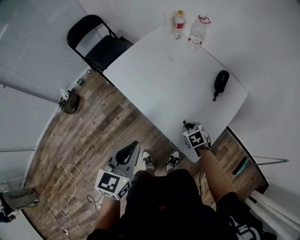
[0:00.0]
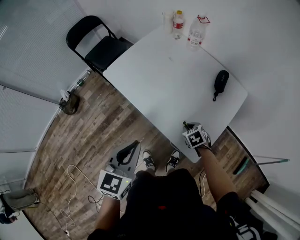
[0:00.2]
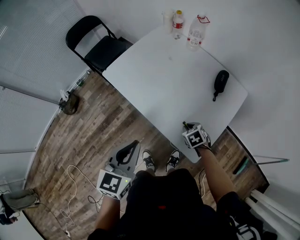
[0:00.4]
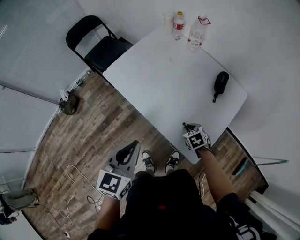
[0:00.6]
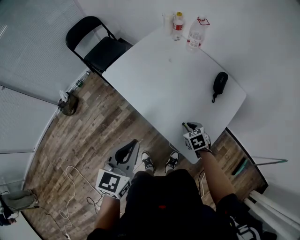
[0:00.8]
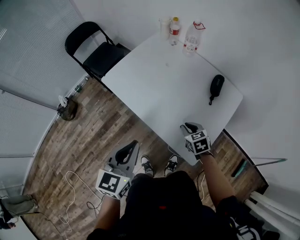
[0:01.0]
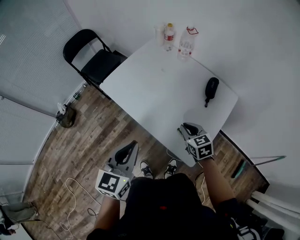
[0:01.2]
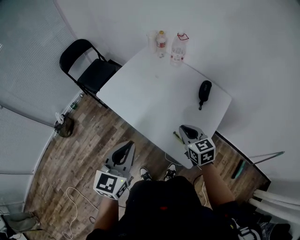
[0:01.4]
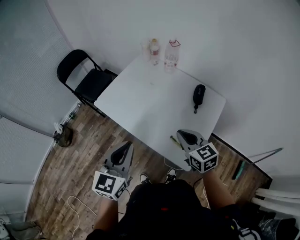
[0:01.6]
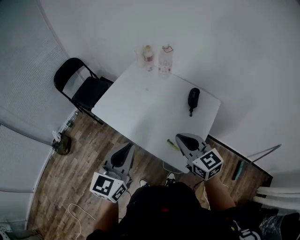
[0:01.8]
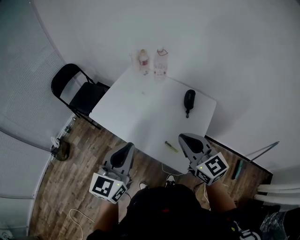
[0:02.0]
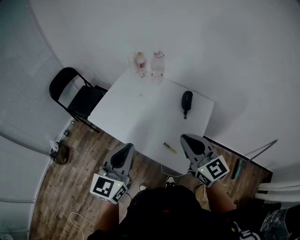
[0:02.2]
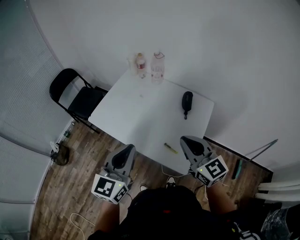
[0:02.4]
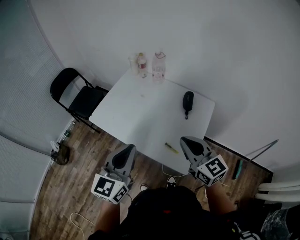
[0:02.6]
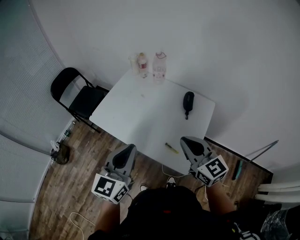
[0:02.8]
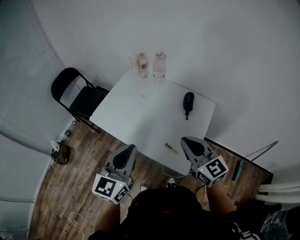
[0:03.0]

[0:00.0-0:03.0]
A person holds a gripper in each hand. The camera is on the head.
0:00.0 to 0:01.6: The right gripper moves upward, approximately 25 cm, and tilts its fingers some 40 degrees upward, while the left gripper shifts some 5 cm upward.
0:01.6 to 0:03.0: The left gripper shifts by roughly 5 cm; the right gripper heads upward, covering about 10 cm.

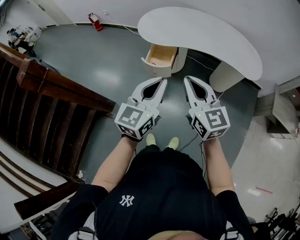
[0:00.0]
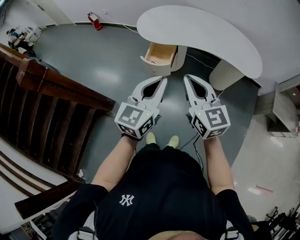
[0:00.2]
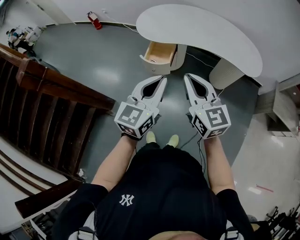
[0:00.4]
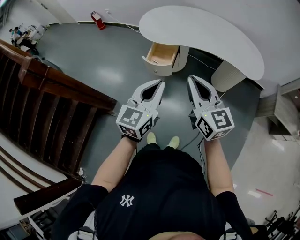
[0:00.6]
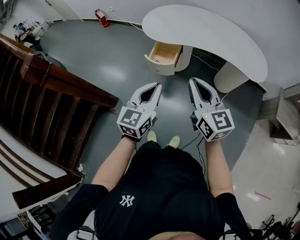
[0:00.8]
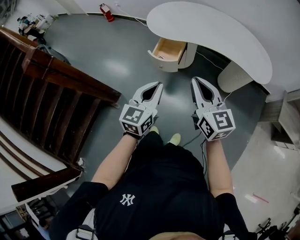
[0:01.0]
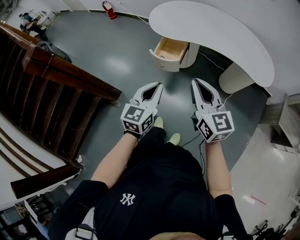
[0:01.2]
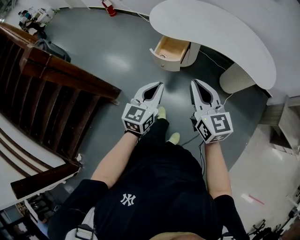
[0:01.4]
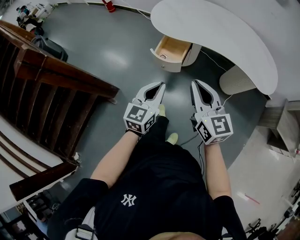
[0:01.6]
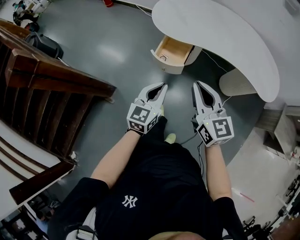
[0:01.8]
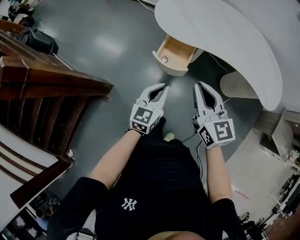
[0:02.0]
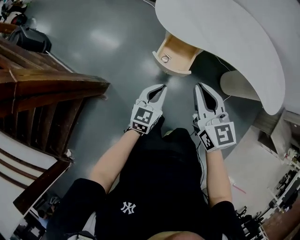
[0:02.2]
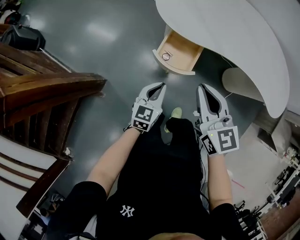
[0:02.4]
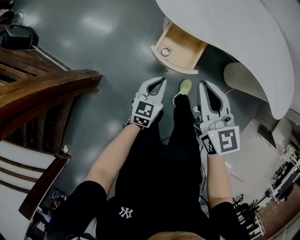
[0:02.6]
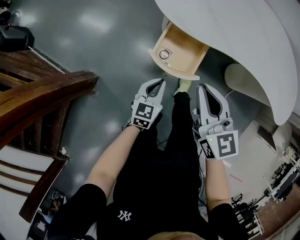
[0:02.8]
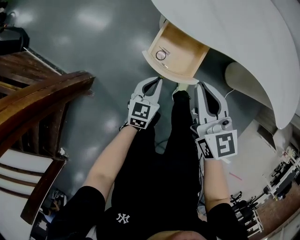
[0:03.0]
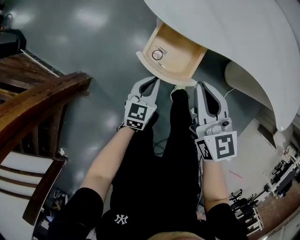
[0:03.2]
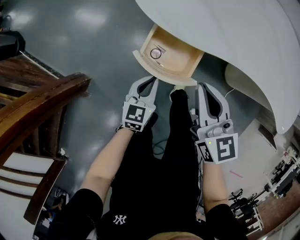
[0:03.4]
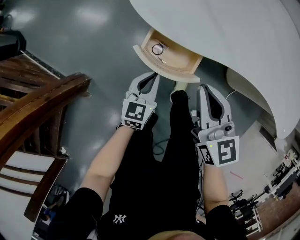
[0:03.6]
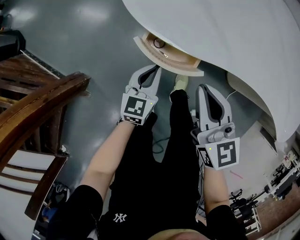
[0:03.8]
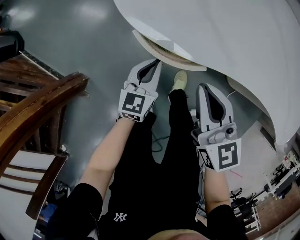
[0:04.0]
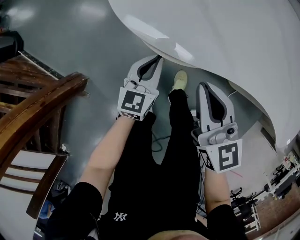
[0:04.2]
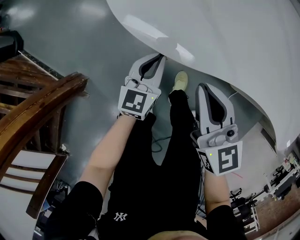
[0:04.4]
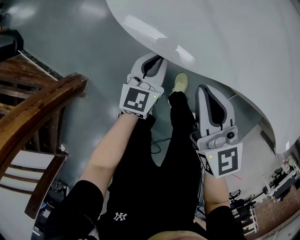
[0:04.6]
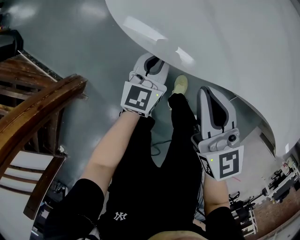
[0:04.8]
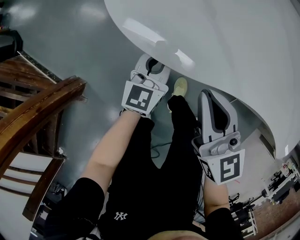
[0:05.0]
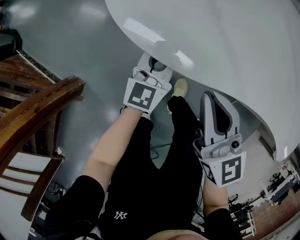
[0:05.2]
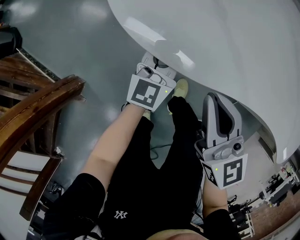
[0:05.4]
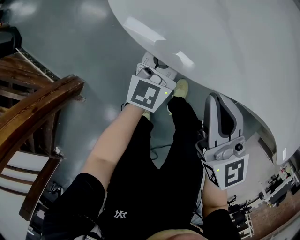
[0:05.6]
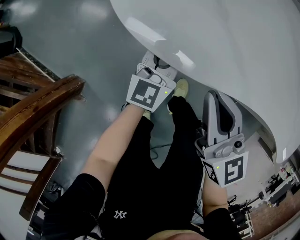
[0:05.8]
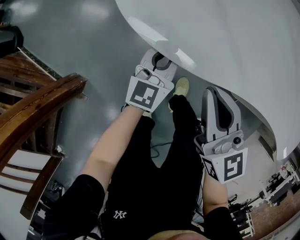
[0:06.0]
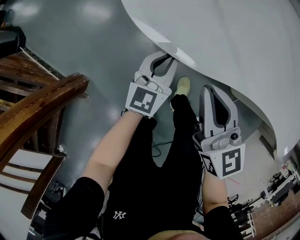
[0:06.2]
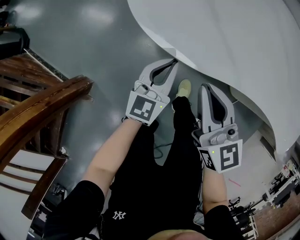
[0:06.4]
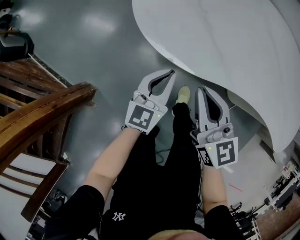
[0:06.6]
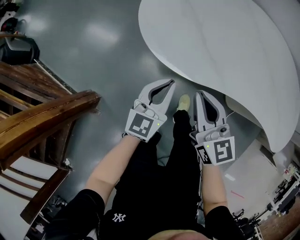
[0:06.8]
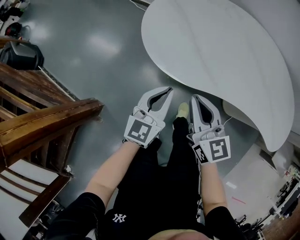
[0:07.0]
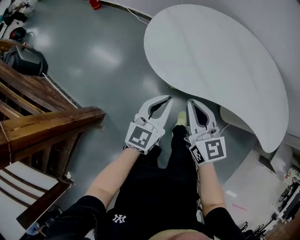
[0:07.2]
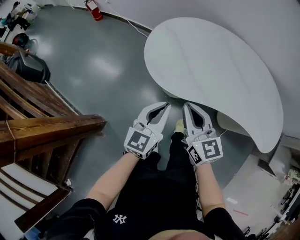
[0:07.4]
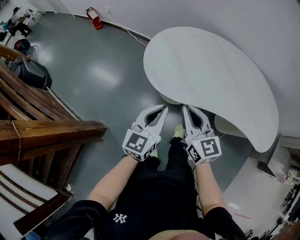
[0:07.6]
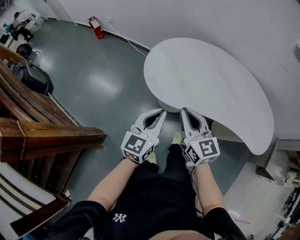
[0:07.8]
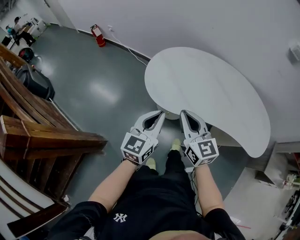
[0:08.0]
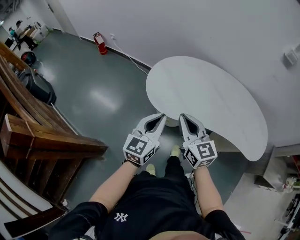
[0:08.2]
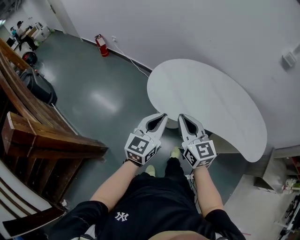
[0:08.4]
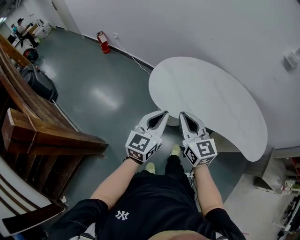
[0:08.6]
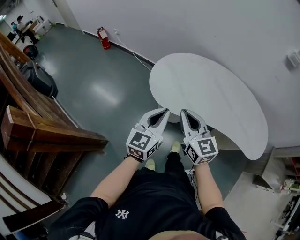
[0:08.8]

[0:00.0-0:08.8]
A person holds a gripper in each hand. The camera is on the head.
0:00.0 to 0:01.4: The right gripper goes about 5 cm downward, while the left gripper moves downward, approximately 10 cm.
0:01.4 to 0:03.0: The left gripper heads downward and forward, covering about 50 cm. Meanwhile the right gripper shifts roughly 40 cm forward and downward.
0:03.0 to 0:04.4: The right gripper shifts approximately 10 cm forward and to the right. Meanwhile the left gripper is displaced forward and to the right by approximately 20 cm.
0:04.4 to 0:05.8: The left gripper moves forward, some 5 cm.
0:05.8 to 0:07.4: The left gripper moves upward and backward, some 30 cm. The right gripper shifts approximately 15 cm upward.
0:07.4 to 0:08.8: Both grippers move upward, approximately 15 cm.

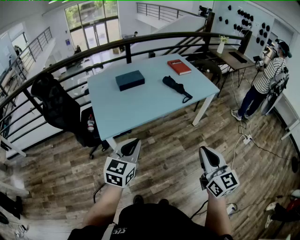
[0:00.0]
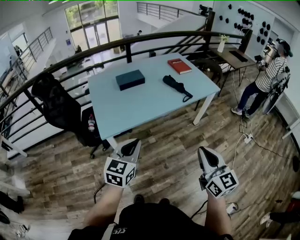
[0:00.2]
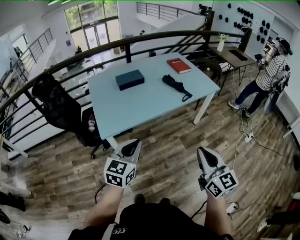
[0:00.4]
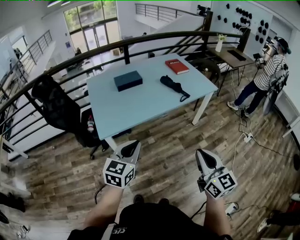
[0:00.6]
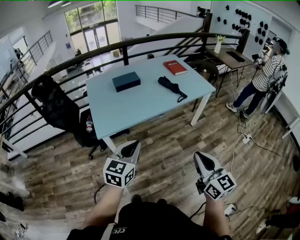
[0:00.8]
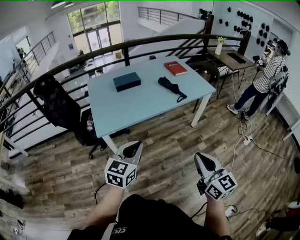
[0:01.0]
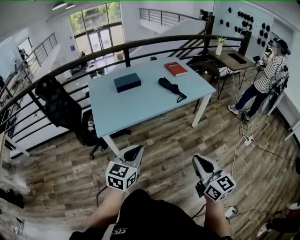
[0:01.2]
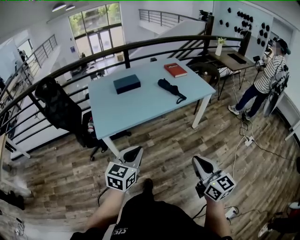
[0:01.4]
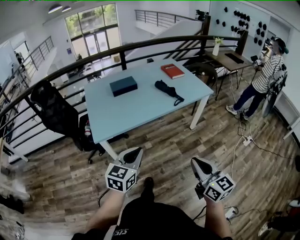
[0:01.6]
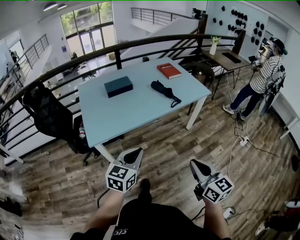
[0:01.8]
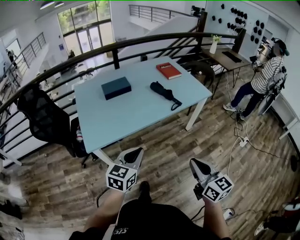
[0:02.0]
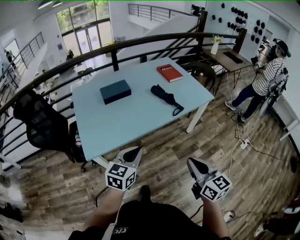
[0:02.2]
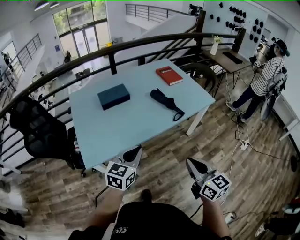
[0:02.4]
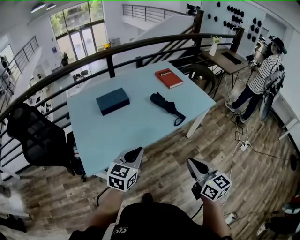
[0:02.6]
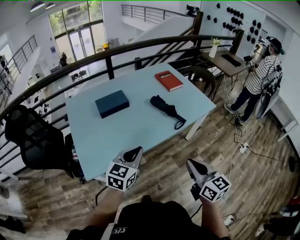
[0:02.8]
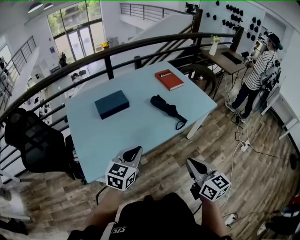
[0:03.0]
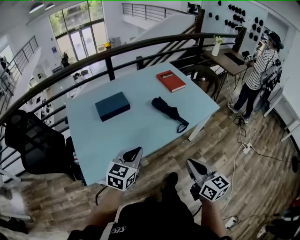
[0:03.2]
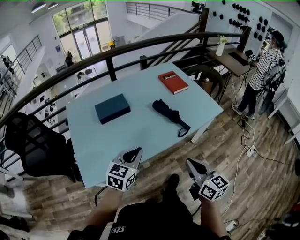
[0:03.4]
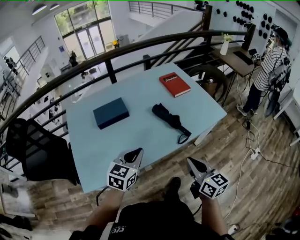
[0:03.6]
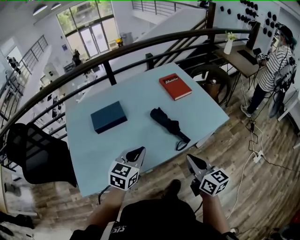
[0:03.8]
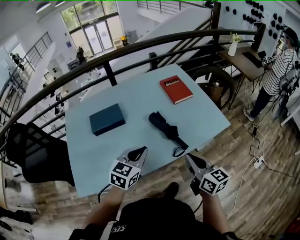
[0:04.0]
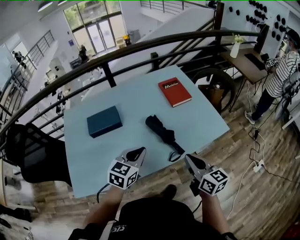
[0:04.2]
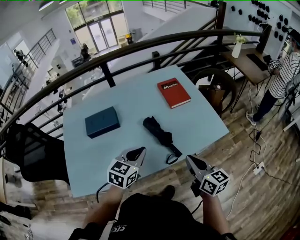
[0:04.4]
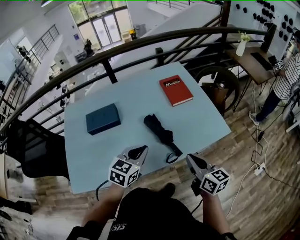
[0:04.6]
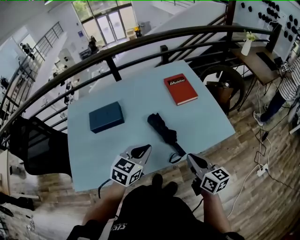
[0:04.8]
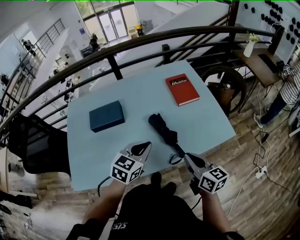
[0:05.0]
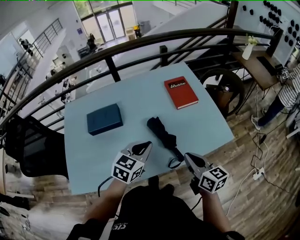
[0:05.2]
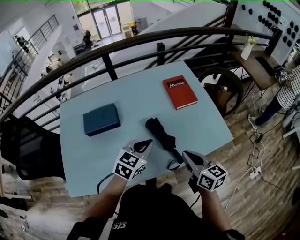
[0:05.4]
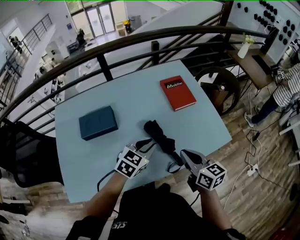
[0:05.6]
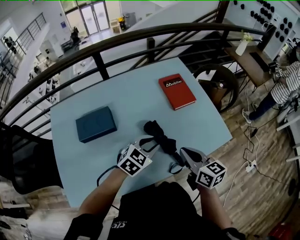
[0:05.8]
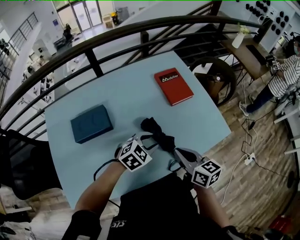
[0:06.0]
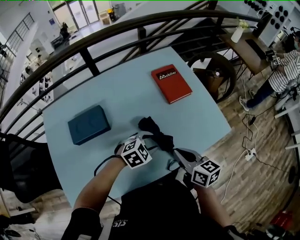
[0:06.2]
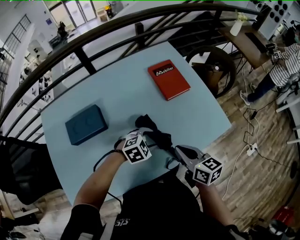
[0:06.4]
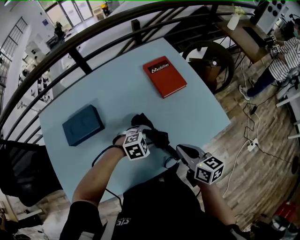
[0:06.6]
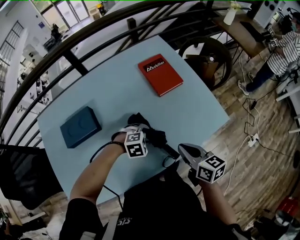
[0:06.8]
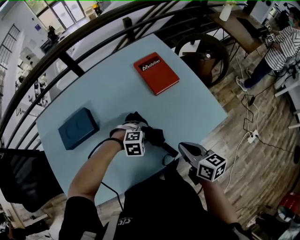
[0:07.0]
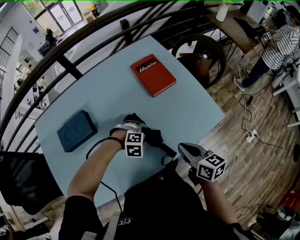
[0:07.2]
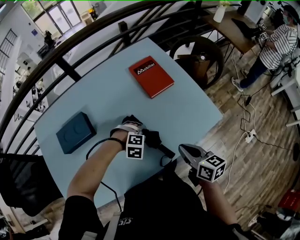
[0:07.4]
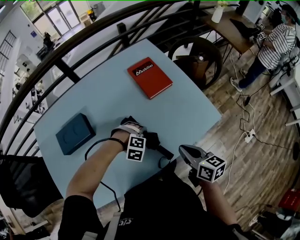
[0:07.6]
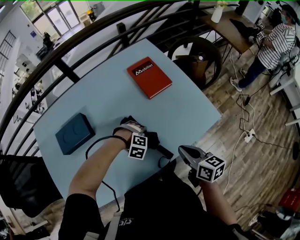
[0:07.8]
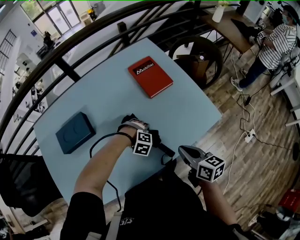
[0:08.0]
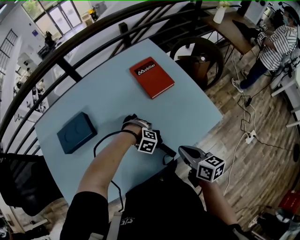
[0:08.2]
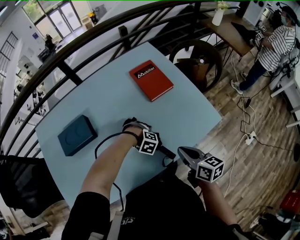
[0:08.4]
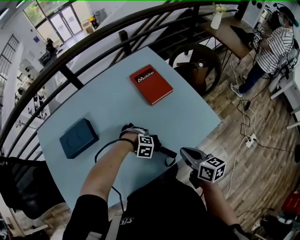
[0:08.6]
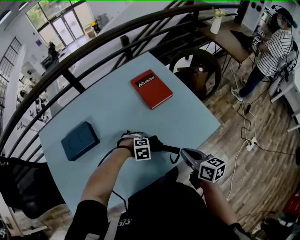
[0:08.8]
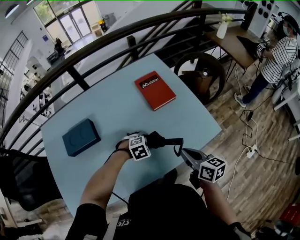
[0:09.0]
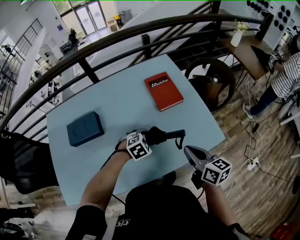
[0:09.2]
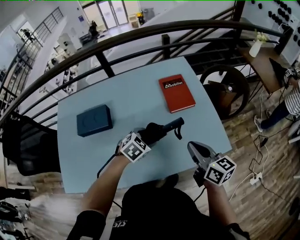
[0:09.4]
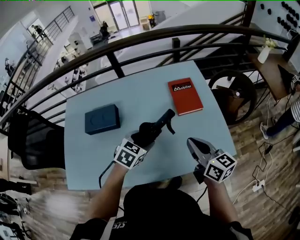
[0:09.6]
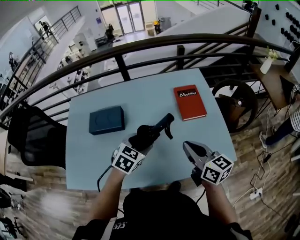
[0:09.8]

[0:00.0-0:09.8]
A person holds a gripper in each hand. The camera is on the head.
0:00.0 to 0:01.4: Both grippers travel together to the right and backward, approximately 10 cm.
0:01.4 to 0:02.8: Both grippers move forward, roughly 30 cm.
0:02.8 to 0:04.2: The two grippers go roughly 30 cm forward and to the right.
0:04.2 to 0:05.6: Both grippers travel together forward, about 10 cm.
0:05.6 to 0:07.0: The left gripper shifts about 20 cm downward, tips its fingers downward by some 40 degrees, and opens its fingers. The right gripper moves downward and to the right, approximately 10 cm.
0:07.0 to 0:08.4: The left gripper goes some 5 cm downward, and rotates about 30 degrees.
0:08.4 to 0:09.8: The right gripper heads upward, covering about 10 cm, and rotates about 30 degrees; the left gripper travels upward by approximately 25 cm, and rolls counterclockwise, seen from behind, by approximately 90 degrees.

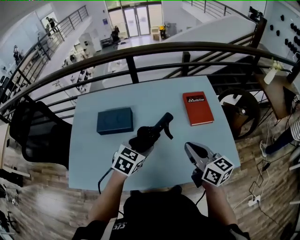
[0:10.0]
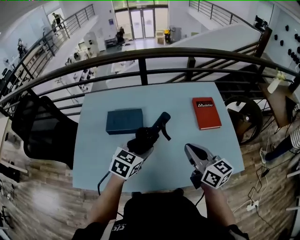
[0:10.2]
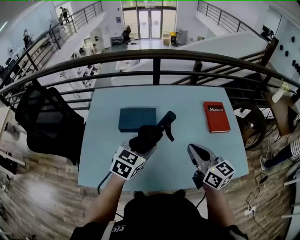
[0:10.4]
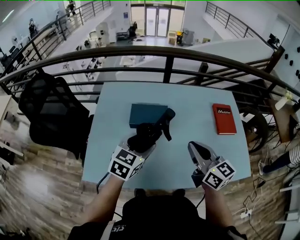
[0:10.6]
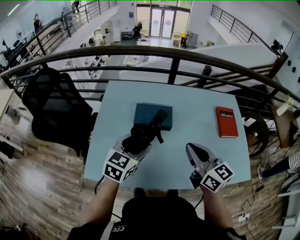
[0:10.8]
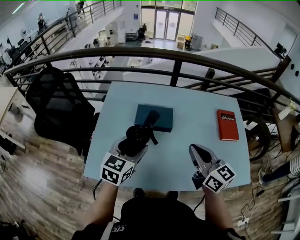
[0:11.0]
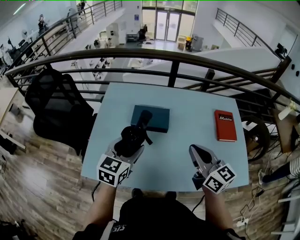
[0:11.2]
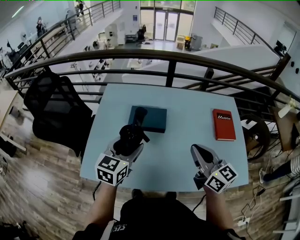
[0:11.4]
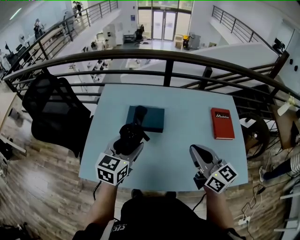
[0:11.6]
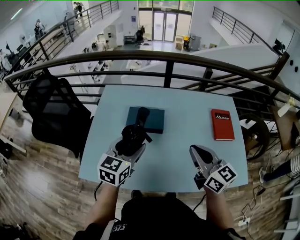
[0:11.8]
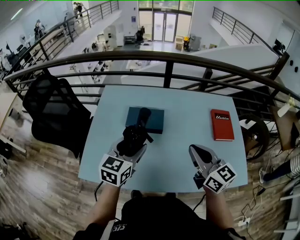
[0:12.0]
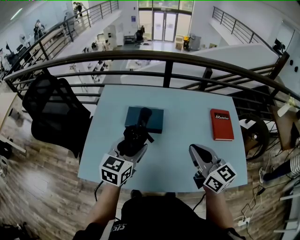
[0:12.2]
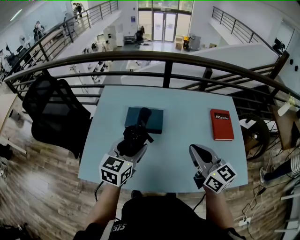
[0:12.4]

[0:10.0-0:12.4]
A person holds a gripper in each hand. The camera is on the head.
0:10.0 to 0:11.2: The two grippers go some 25 cm to the left. The left gripper rotates about 30 degrees.
0:11.2 to 0:12.4: The left gripper goes about 5 cm to the right.
